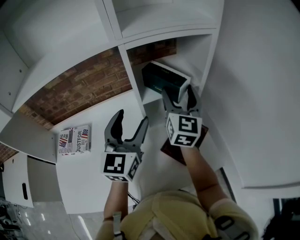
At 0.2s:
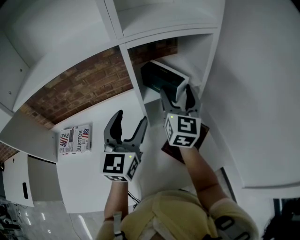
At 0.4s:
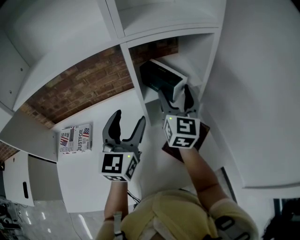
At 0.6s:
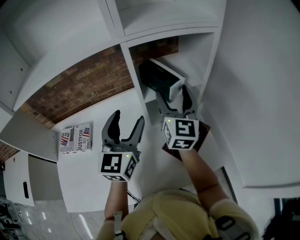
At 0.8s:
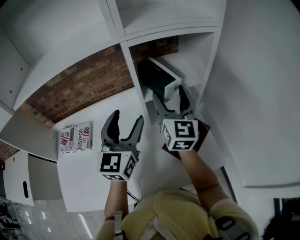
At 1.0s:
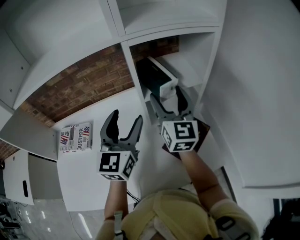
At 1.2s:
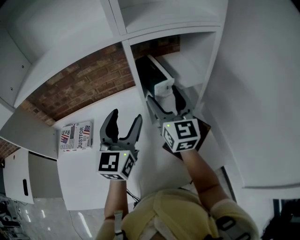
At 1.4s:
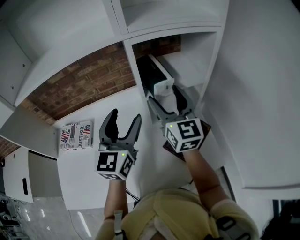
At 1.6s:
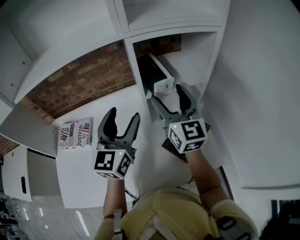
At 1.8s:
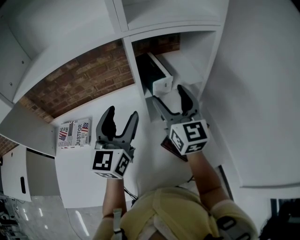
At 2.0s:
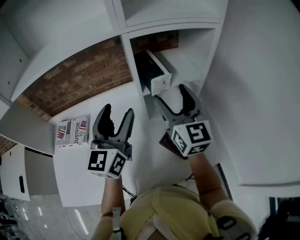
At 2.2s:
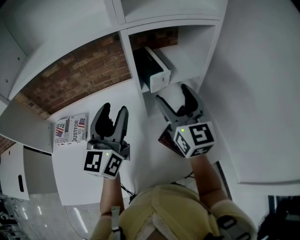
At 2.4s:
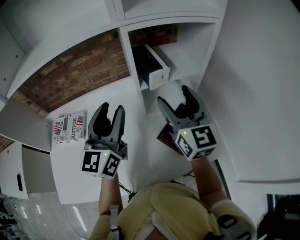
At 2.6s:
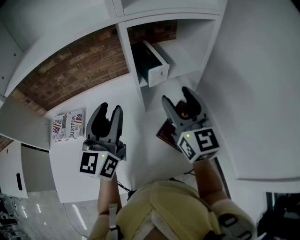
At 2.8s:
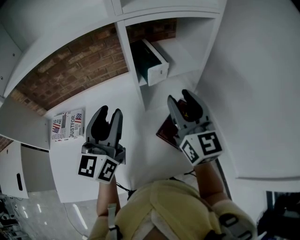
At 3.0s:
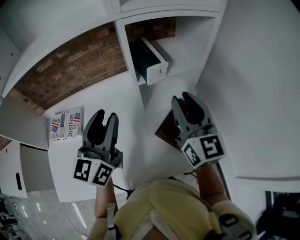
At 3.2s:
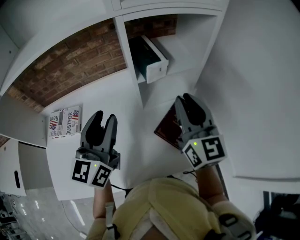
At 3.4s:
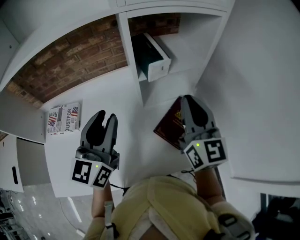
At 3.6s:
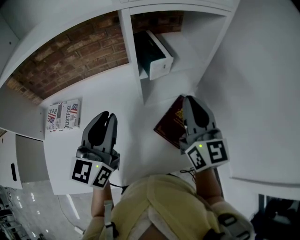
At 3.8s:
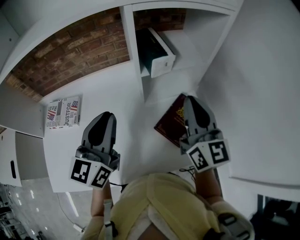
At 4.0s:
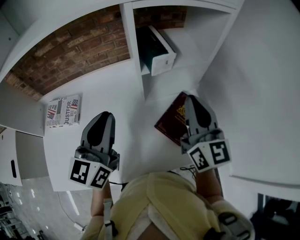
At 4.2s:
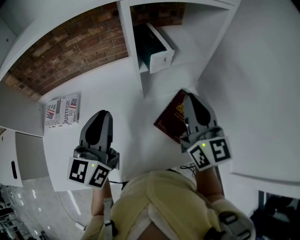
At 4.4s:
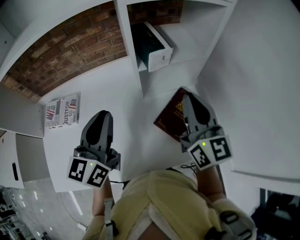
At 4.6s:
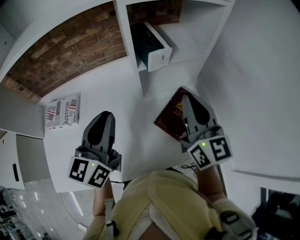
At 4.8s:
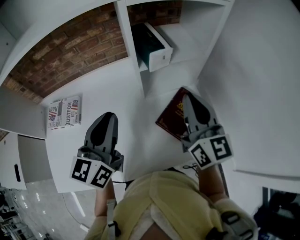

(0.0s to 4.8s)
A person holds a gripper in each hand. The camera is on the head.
0.0s - 1.6s: The right gripper moves to the left, about 5 cm, and changes its angle by some 20 degrees.
1.6s - 3.2s: The right gripper heads backward and to the right, covering roughly 10 cm, and closes, while the left gripper goes some 5 cm backward, and closes.
3.2s - 4.8s: The left gripper closes.

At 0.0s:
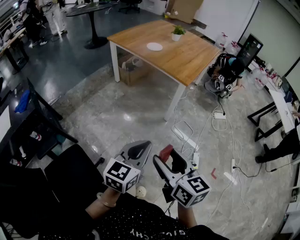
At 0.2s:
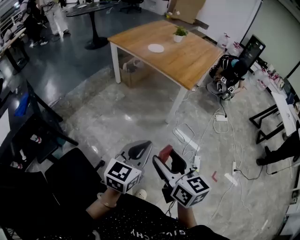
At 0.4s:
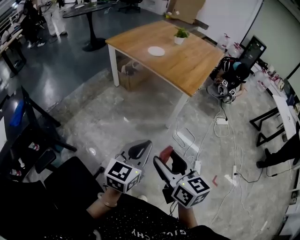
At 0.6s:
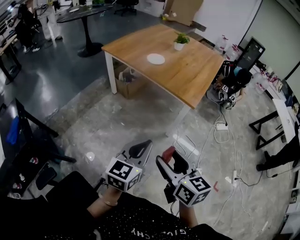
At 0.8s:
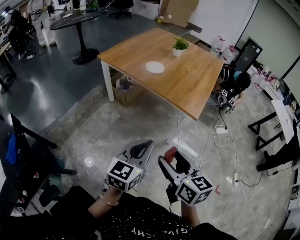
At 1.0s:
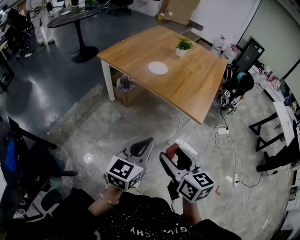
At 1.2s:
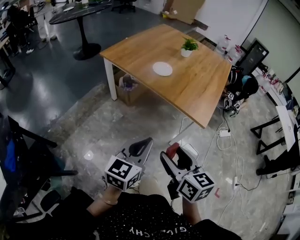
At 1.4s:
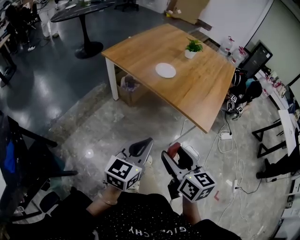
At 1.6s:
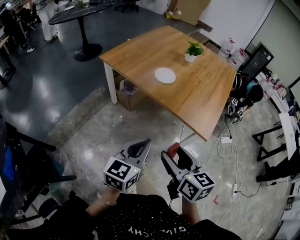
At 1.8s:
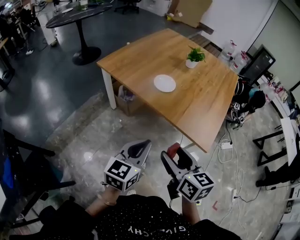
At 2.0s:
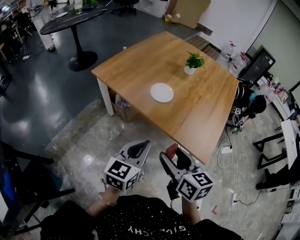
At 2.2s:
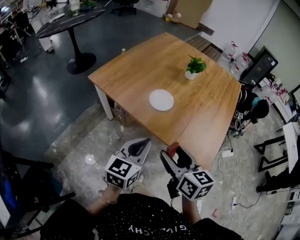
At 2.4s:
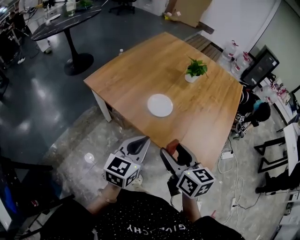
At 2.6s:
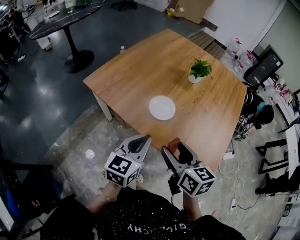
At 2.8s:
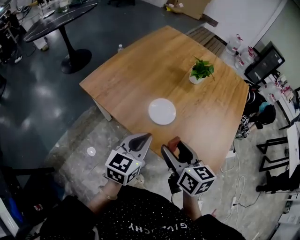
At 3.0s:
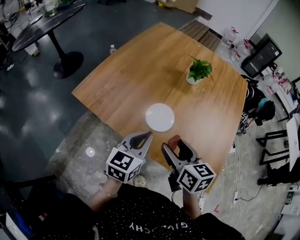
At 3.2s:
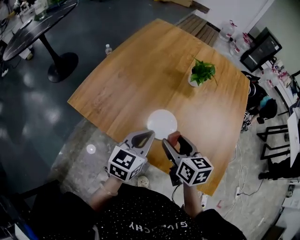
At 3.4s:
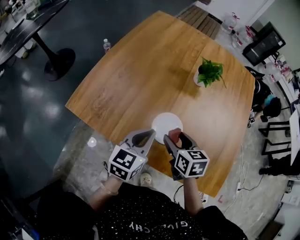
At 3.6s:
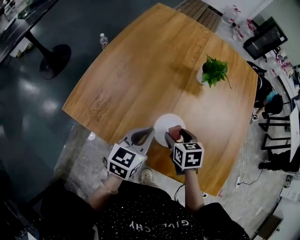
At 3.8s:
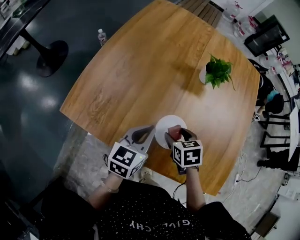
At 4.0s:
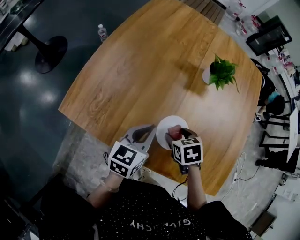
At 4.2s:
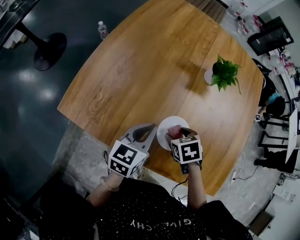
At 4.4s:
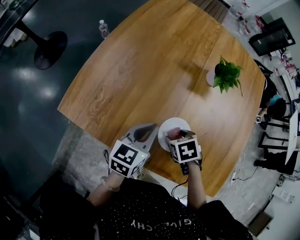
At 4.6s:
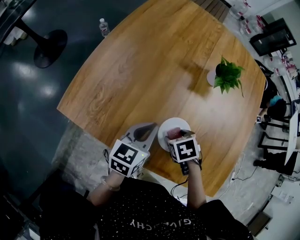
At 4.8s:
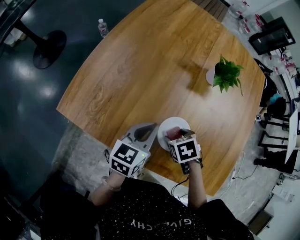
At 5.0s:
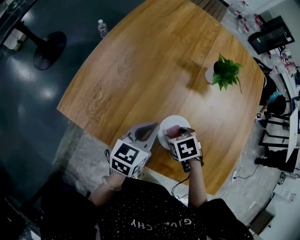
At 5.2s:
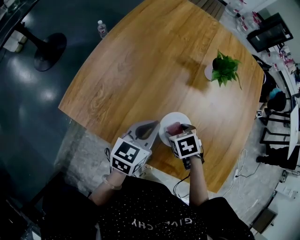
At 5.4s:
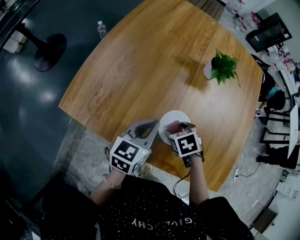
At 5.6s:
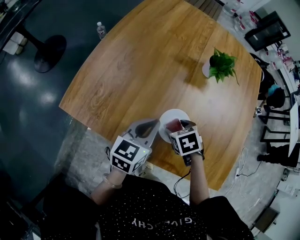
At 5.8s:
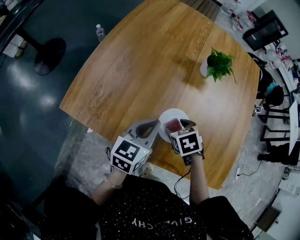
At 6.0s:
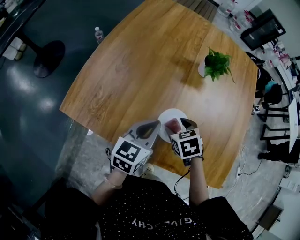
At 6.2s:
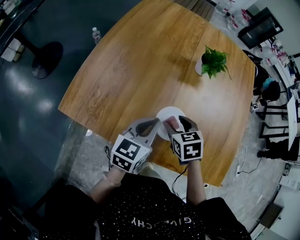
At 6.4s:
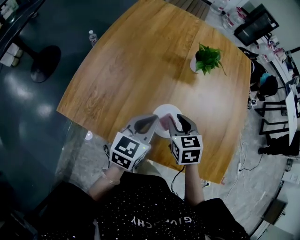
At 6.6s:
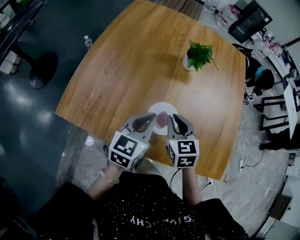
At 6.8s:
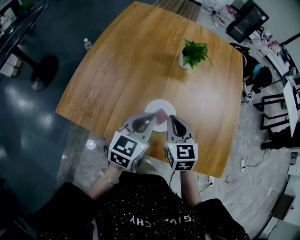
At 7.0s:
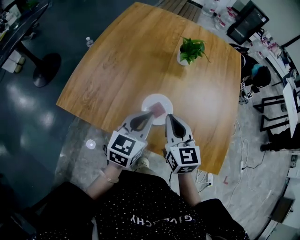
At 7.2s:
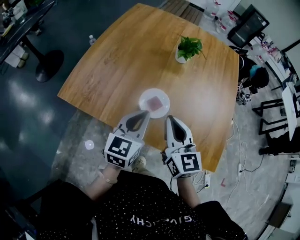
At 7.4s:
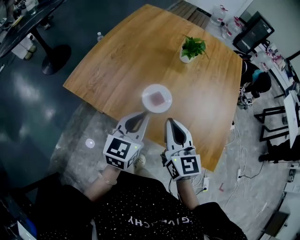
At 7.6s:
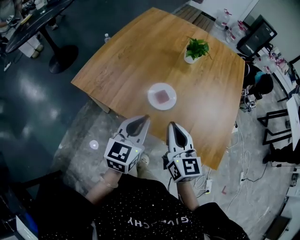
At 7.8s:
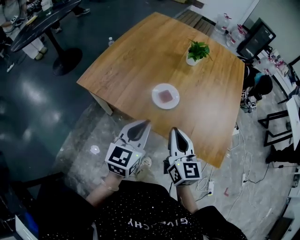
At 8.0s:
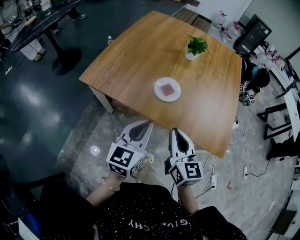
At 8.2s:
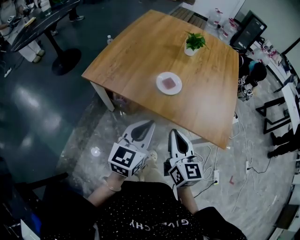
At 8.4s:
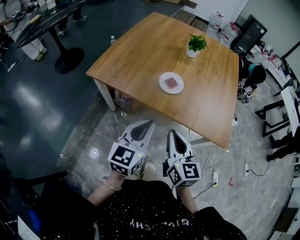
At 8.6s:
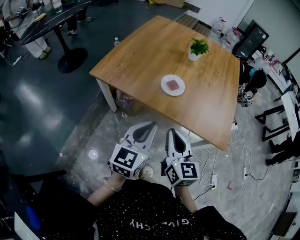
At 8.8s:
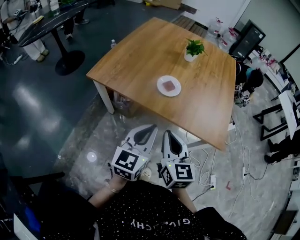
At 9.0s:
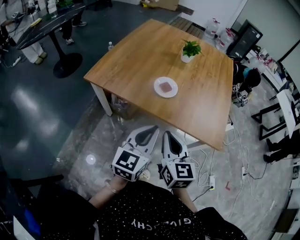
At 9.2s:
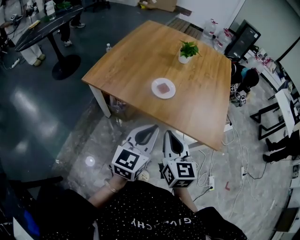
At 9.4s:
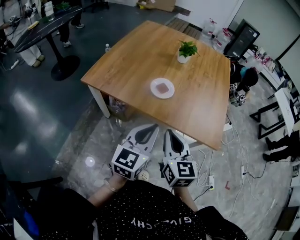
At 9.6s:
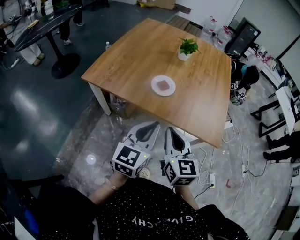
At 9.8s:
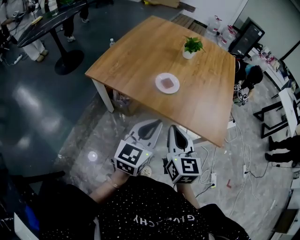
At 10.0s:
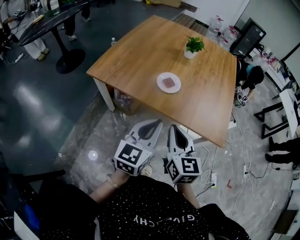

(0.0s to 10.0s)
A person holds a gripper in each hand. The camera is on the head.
0.0s - 1.4s: The two grippers travel together, forward, roughly 40 cm.
1.4s - 2.8s: The two grippers travel together, forward, approximately 40 cm.
2.8s - 4.2s: Both grippers move forward and downward, about 30 cm. The right gripper points its fingers about 50 degrees further downward.
4.2s - 5.8s: The grippers move only a little.
5.8s - 7.2s: The left gripper shifts some 15 cm backward, to the right and upward. Meanwhile the right gripper moves upward and backward, about 20 cm, points its fingers approximately 60 degrees further upward, and closes up.
7.2s - 8.6s: The two grippers go roughly 25 cm backward.
8.6s - 10.0s: The grippers stay close to where they were, moving slightly.

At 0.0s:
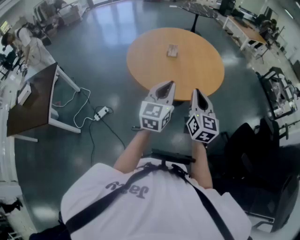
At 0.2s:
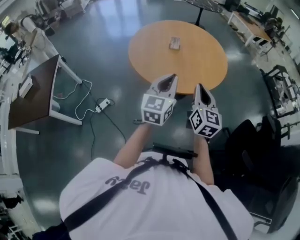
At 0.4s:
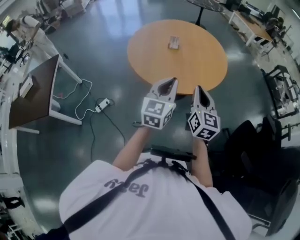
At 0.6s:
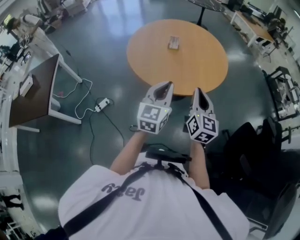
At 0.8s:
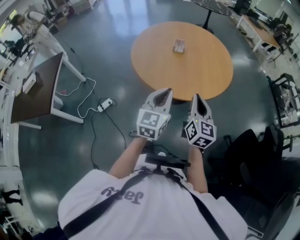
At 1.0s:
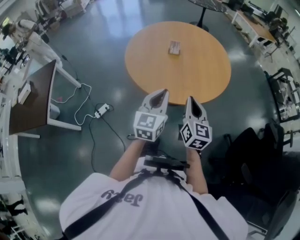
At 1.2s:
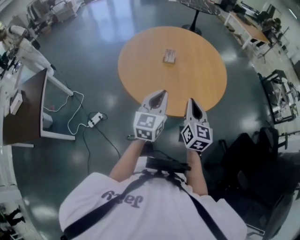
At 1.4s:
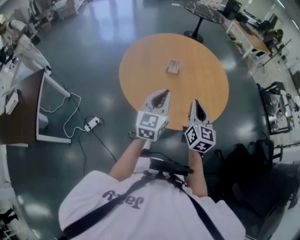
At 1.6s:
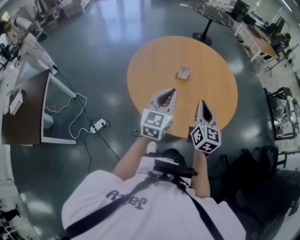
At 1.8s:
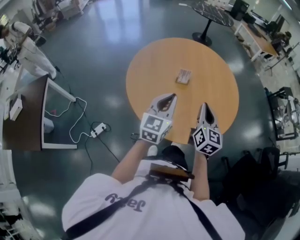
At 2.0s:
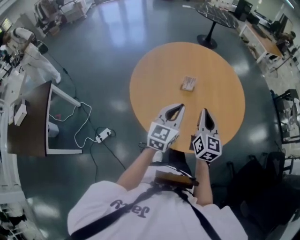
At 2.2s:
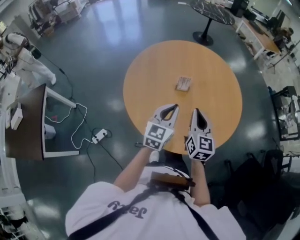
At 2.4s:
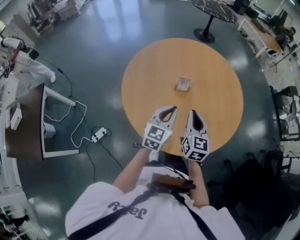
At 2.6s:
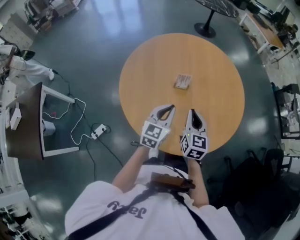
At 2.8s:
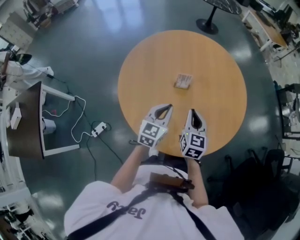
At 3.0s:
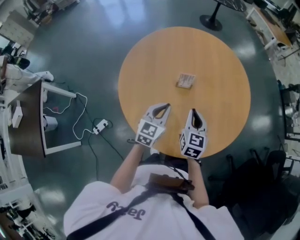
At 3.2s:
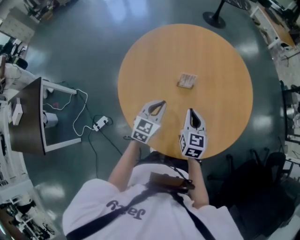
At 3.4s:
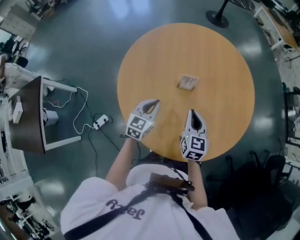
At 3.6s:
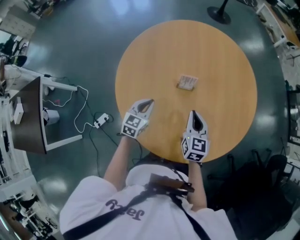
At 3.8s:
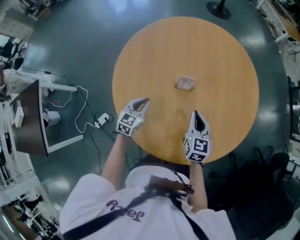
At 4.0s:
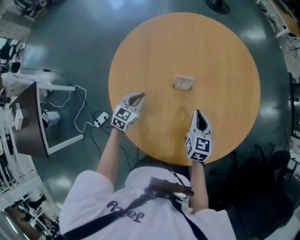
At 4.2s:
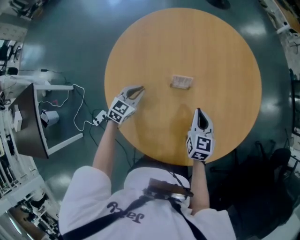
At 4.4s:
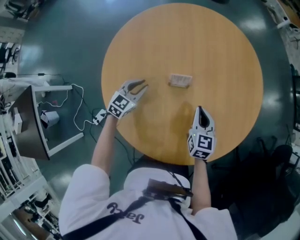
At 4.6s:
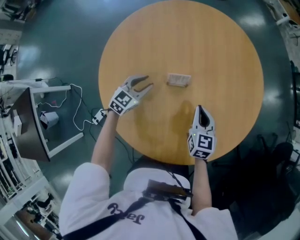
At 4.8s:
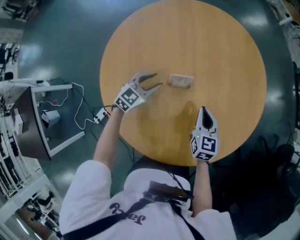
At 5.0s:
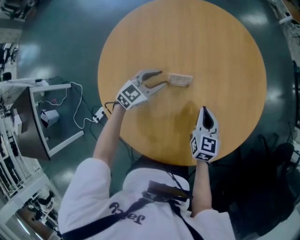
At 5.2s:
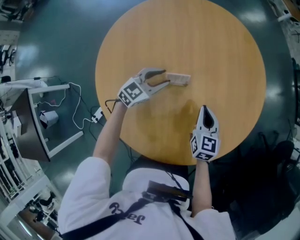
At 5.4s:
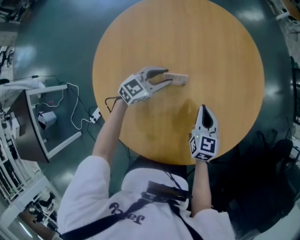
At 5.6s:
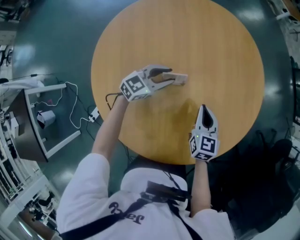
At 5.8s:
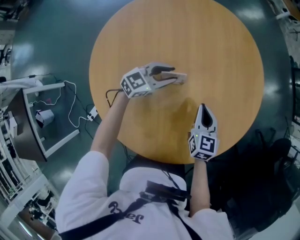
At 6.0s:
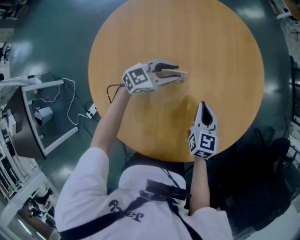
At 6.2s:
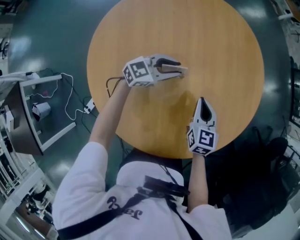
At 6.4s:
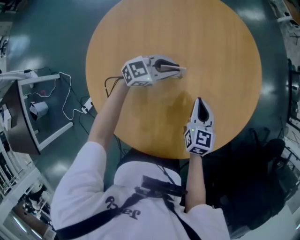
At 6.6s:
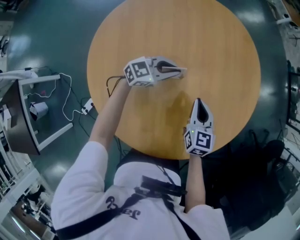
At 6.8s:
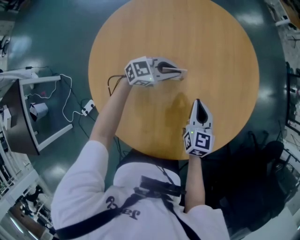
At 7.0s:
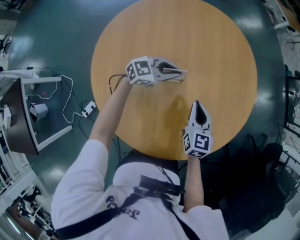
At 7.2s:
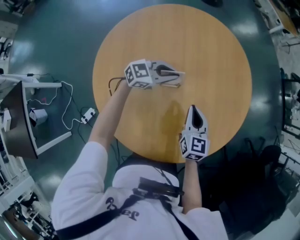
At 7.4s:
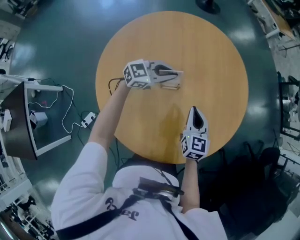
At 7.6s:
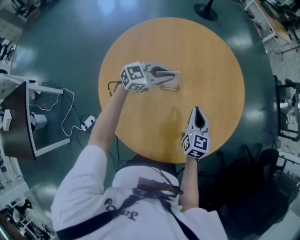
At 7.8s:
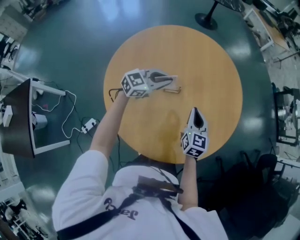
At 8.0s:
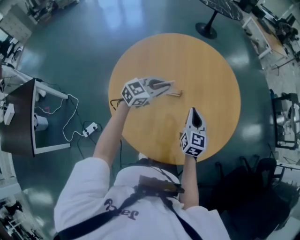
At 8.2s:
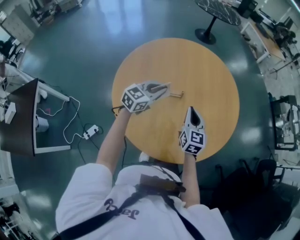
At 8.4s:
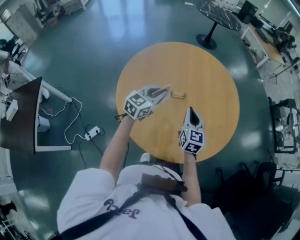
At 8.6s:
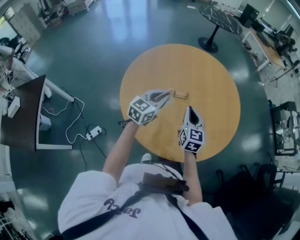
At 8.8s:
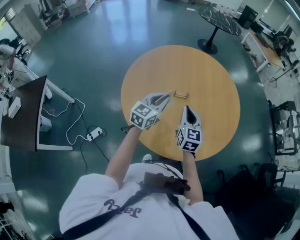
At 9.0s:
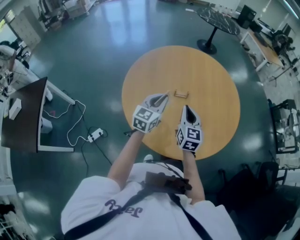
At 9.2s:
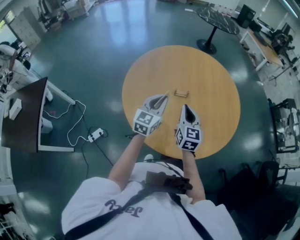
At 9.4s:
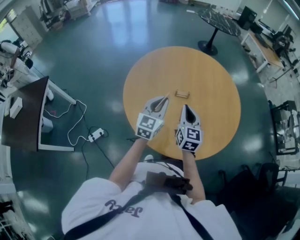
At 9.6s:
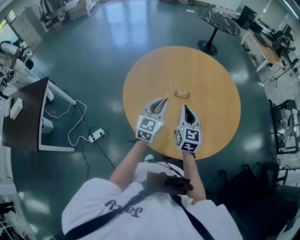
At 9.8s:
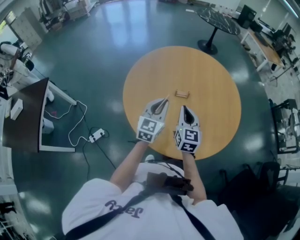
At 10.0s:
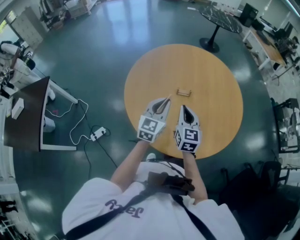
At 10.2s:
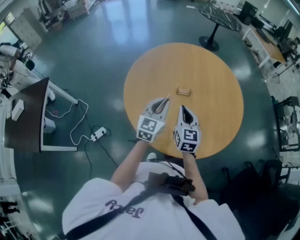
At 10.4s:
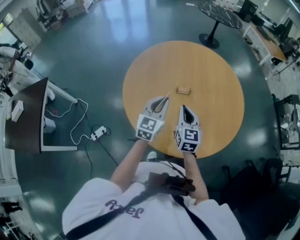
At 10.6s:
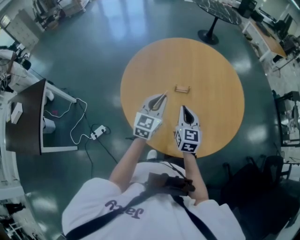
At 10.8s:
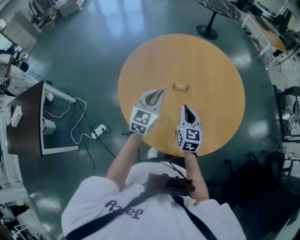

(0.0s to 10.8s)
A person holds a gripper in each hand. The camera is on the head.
0.0s - 1.6s: Both grippers travel together forward, approximately 25 cm.
1.6s - 3.0s: Both grippers travel together downward and forward, about 20 cm.
3.0s - 4.6s: The left gripper heads forward, downward and to the left, covering roughly 20 cm, swivels about 20 degrees, and opens up, while the right gripper travels downward and forward by roughly 10 cm.
4.6s - 6.2s: The left gripper heads to the right and forward, covering some 15 cm, and changes its angle by roughly 30 degrees.
6.2s - 7.8s: The right gripper heads upward, covering roughly 5 cm, while the left gripper shifts about 15 cm upward and backward, and closes.
7.8s - 9.2s: The left gripper moves roughly 15 cm, and swivels roughly 40 degrees. Meanwhile the right gripper moves some 15 cm.
9.2s - 10.8s: The grippers make only small movements.
